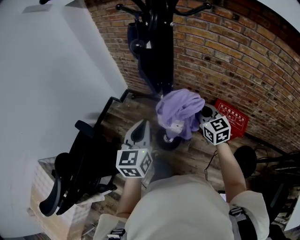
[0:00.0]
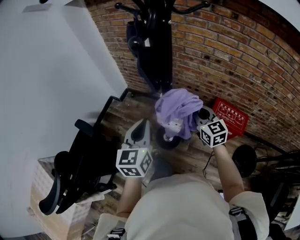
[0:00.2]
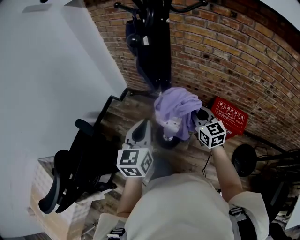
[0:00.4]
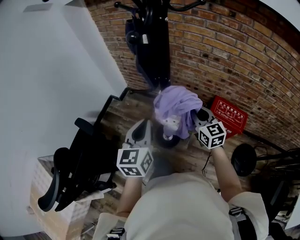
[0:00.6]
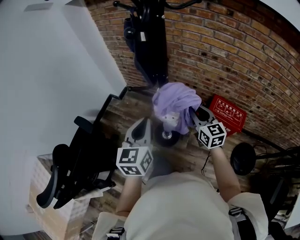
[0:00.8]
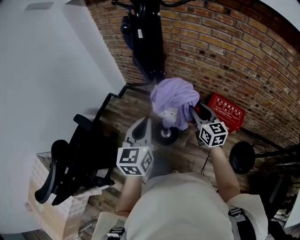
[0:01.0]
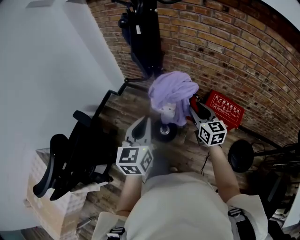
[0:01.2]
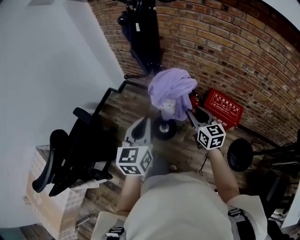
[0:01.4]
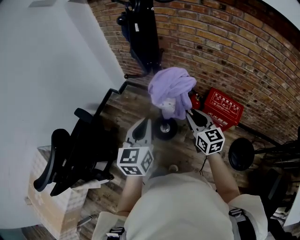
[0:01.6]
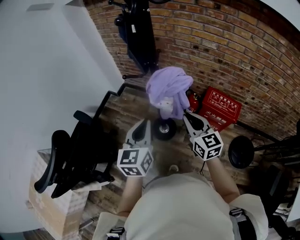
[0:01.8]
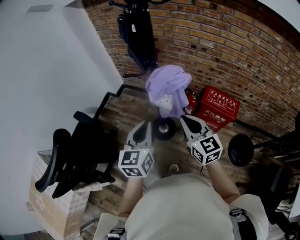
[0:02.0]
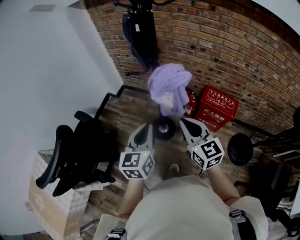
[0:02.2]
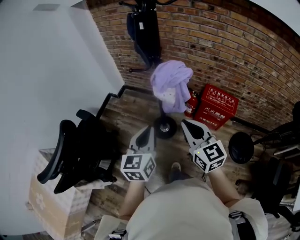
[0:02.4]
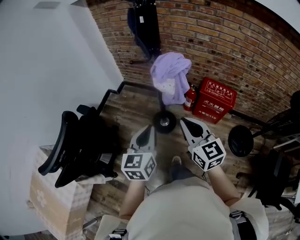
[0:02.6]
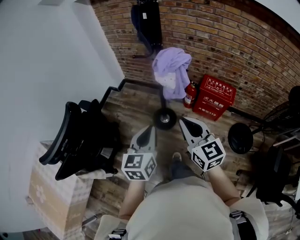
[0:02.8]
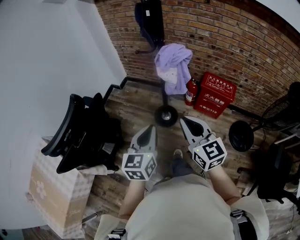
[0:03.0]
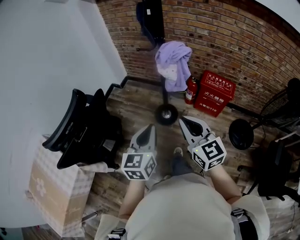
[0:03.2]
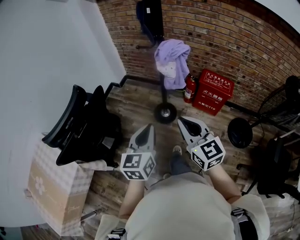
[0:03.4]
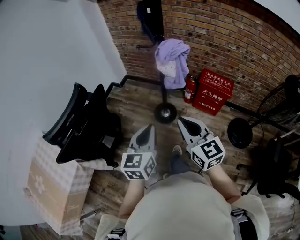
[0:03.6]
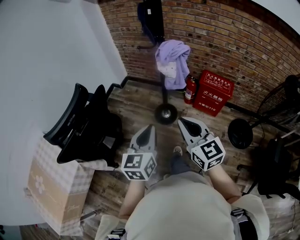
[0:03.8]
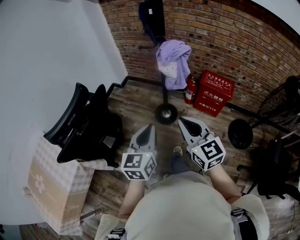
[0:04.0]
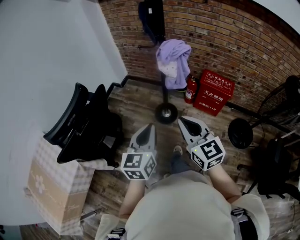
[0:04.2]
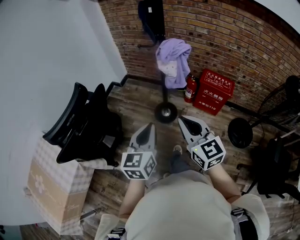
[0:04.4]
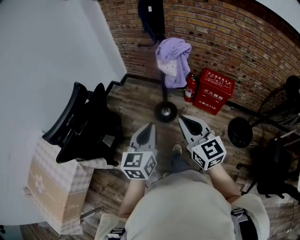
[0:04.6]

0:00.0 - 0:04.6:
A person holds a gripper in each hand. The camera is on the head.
0:00.0 - 0:01.6: The two grippers go about 10 cm backward.
0:01.6 - 0:03.0: The right gripper shifts about 30 cm backward and to the left, and closes its fingers. The left gripper shifts approximately 20 cm backward.
0:03.0 - 0:04.6: The two grippers go approximately 5 cm backward.

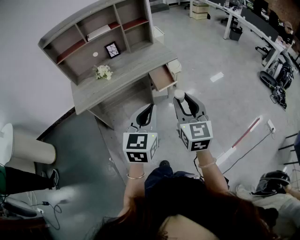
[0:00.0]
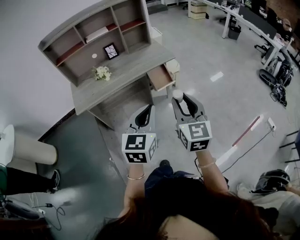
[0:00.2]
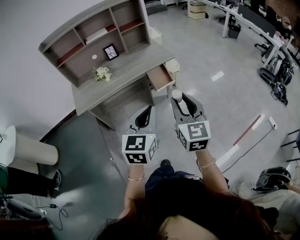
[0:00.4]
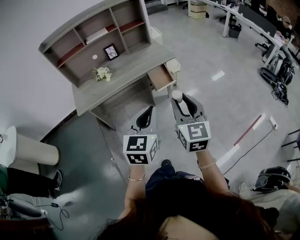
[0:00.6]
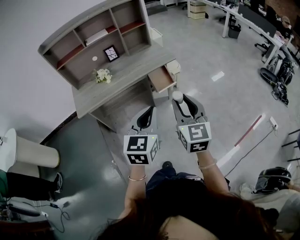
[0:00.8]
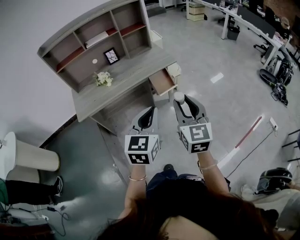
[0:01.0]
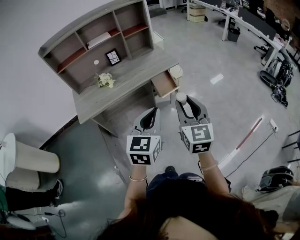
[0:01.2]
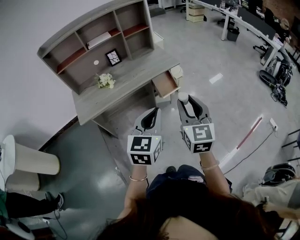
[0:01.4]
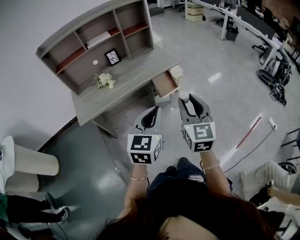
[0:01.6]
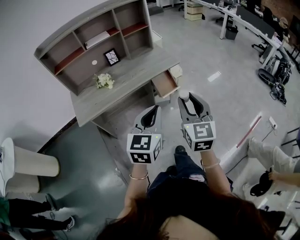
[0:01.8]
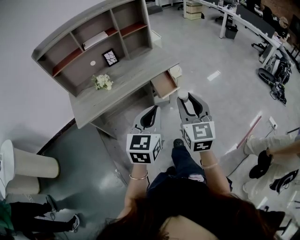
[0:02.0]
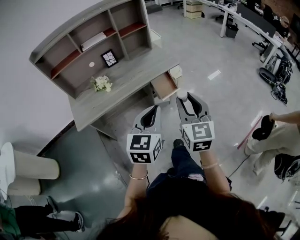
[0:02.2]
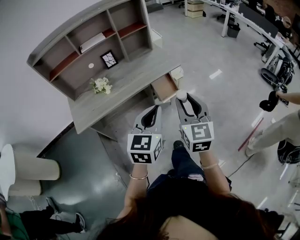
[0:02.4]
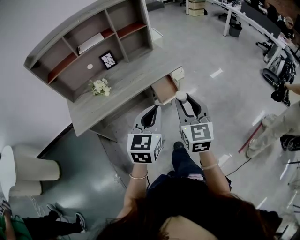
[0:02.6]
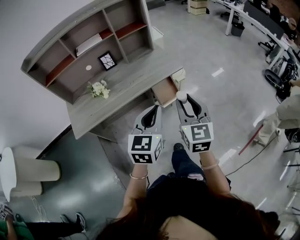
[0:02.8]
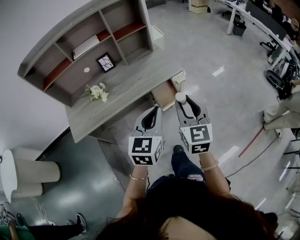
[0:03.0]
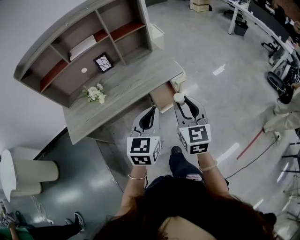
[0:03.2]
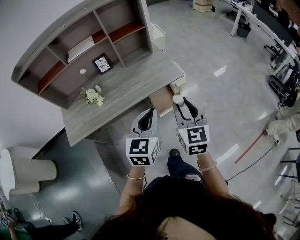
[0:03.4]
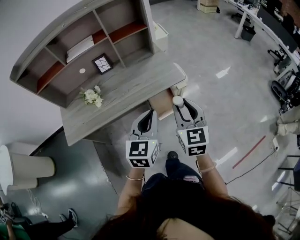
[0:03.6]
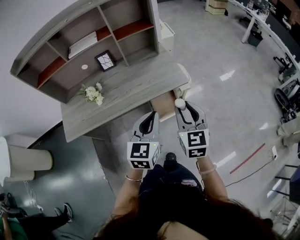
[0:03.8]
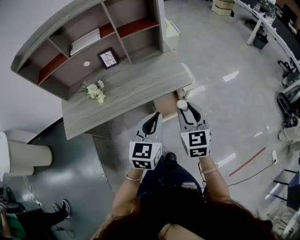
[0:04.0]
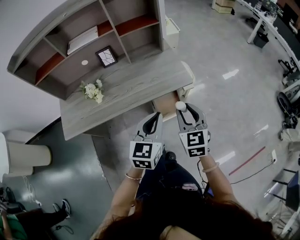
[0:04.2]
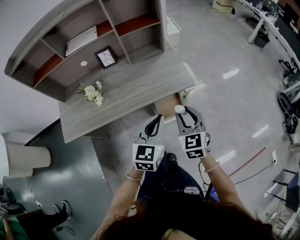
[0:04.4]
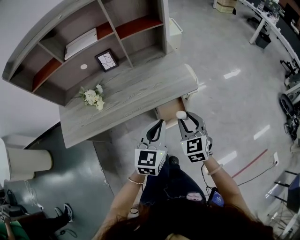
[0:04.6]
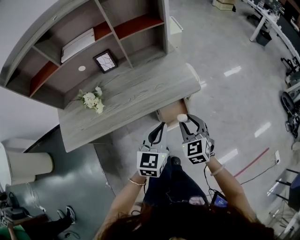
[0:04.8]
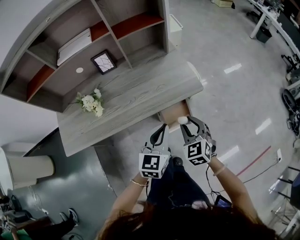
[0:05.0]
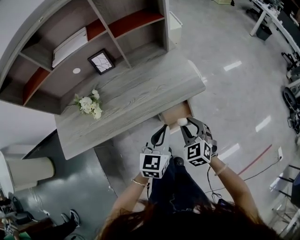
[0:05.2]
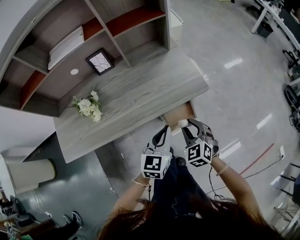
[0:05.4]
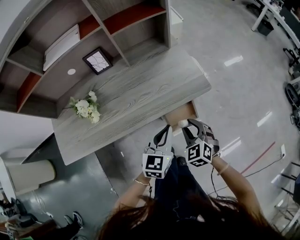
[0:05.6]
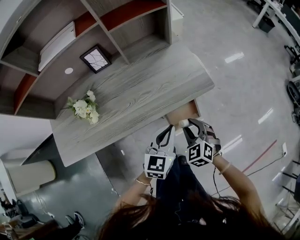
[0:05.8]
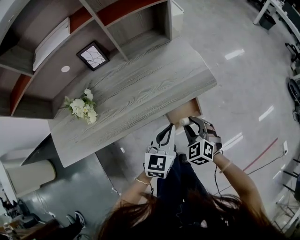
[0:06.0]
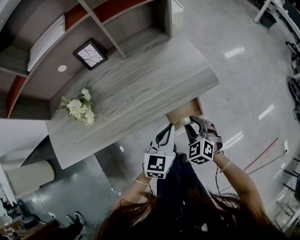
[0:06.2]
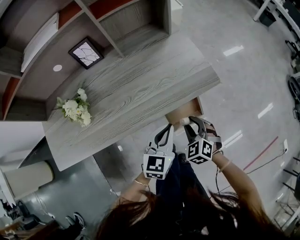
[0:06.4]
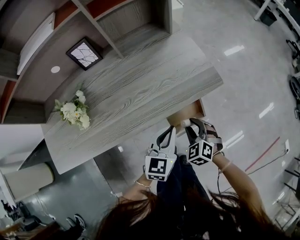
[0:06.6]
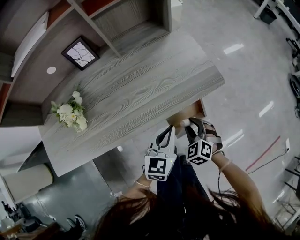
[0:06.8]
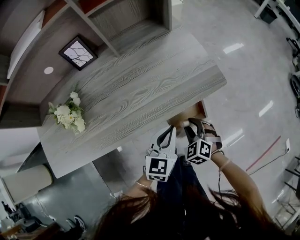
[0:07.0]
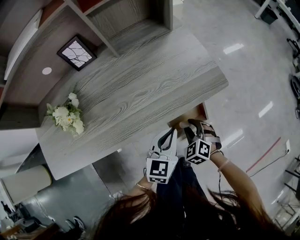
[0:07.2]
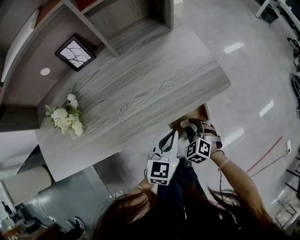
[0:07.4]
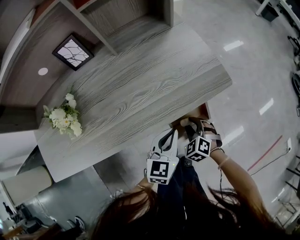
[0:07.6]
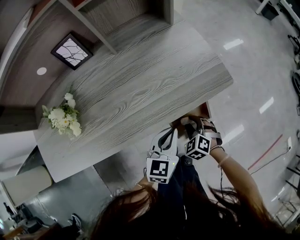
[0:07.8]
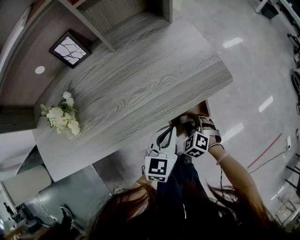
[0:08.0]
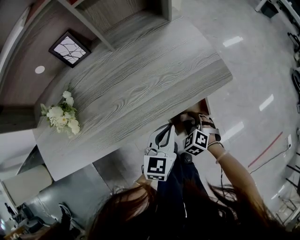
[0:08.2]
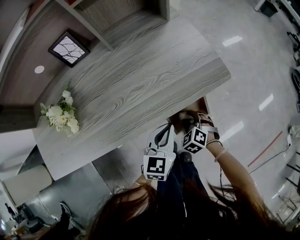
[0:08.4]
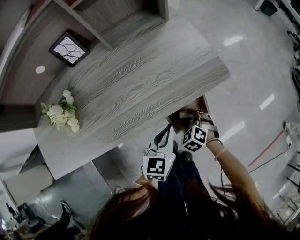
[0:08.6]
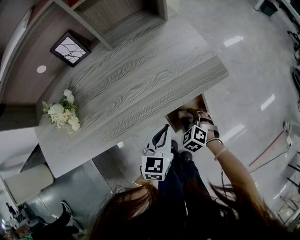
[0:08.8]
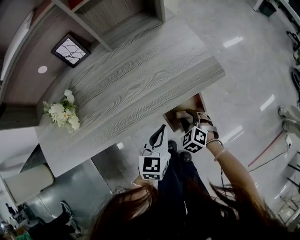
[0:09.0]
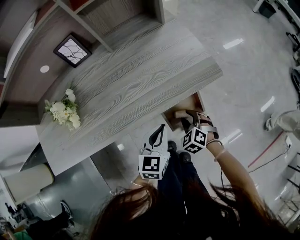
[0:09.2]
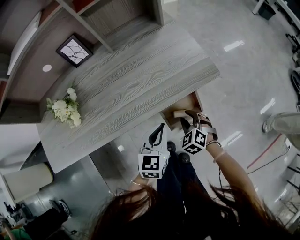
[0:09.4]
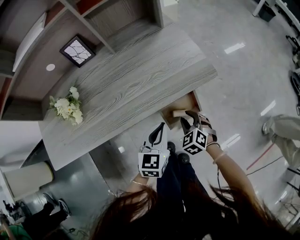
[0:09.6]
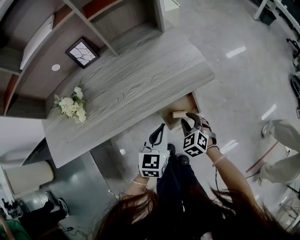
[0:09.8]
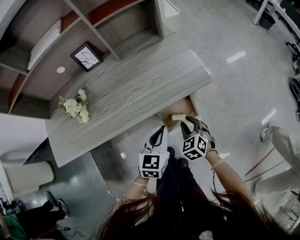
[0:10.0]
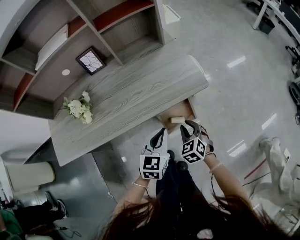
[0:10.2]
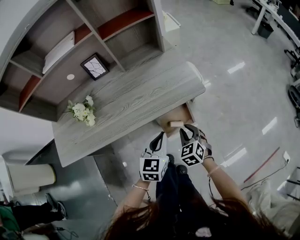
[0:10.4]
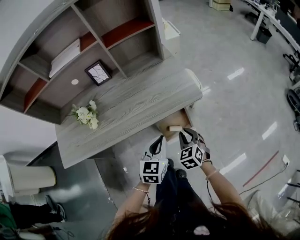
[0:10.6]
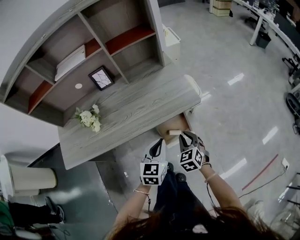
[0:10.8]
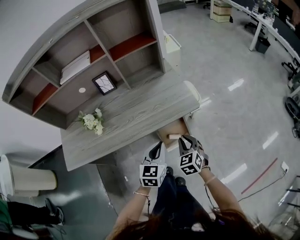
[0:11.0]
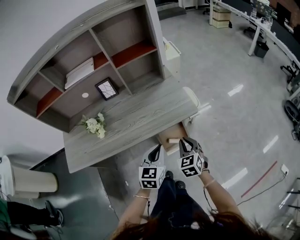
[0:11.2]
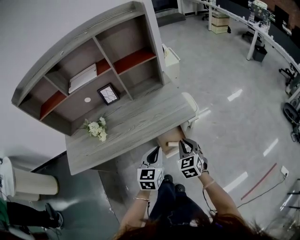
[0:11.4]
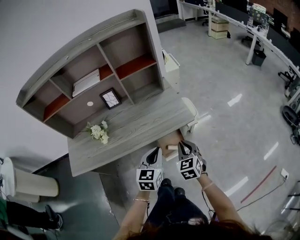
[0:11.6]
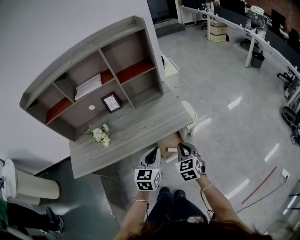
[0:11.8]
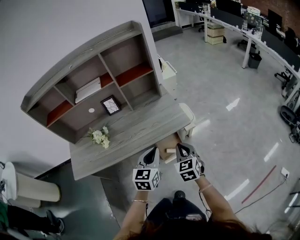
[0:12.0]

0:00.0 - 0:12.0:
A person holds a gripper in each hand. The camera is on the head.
0:00.0 - 0:01.6: The grippers make only small movements.
0:01.6 - 0:03.0: The two grippers go roughly 20 cm forward.
0:03.0 - 0:04.4: Both grippers travel together forward and downward, roughly 20 cm. The right gripper rotates some 20 degrees.
0:04.4 - 0:06.0: The right gripper moves downward, roughly 20 cm, and turns by approximately 30 degrees; the left gripper shifts roughly 20 cm downward and forward.
0:06.0 - 0:07.6: Both grippers move downward, approximately 15 cm.
0:07.6 - 0:09.0: The grippers move only a little.
0:09.0 - 0:10.4: The grippers both shift upward by approximately 15 cm. The right gripper rotates some 20 degrees, and closes up.
0:10.4 - 0:12.0: The grippers both shift upward by some 20 cm. The right gripper changes its angle by roughly 20 degrees.

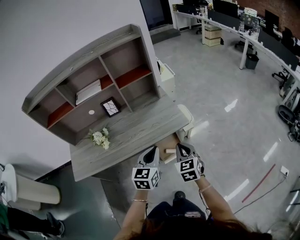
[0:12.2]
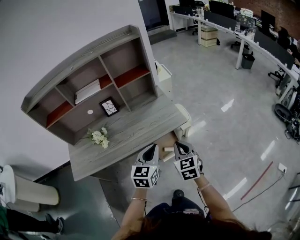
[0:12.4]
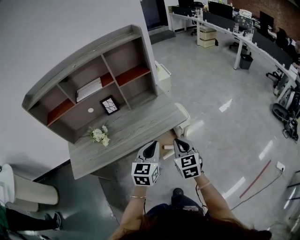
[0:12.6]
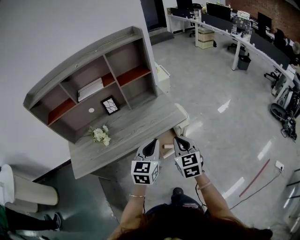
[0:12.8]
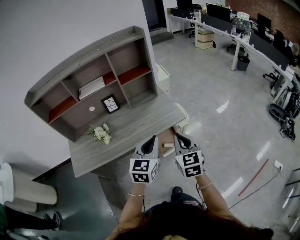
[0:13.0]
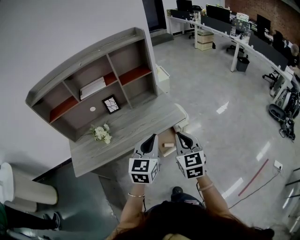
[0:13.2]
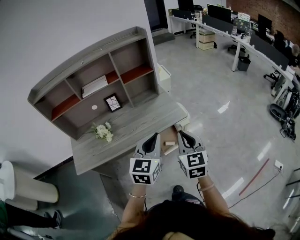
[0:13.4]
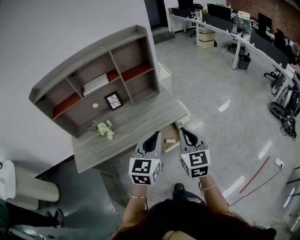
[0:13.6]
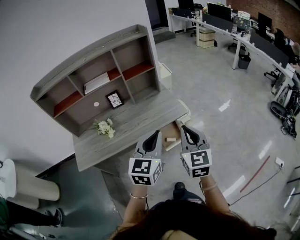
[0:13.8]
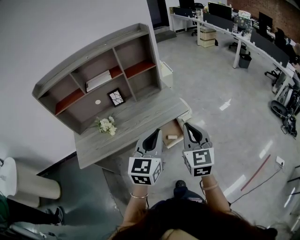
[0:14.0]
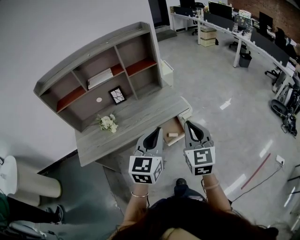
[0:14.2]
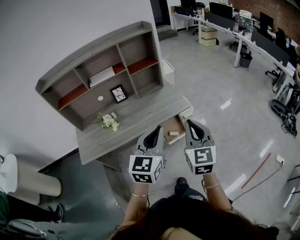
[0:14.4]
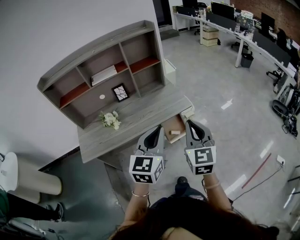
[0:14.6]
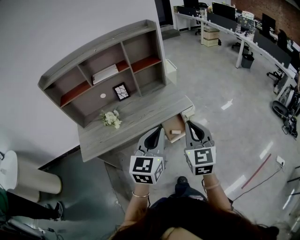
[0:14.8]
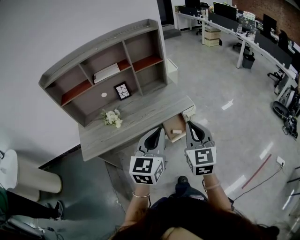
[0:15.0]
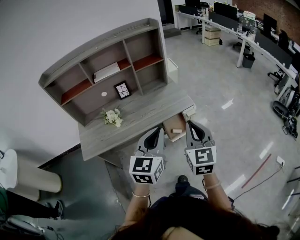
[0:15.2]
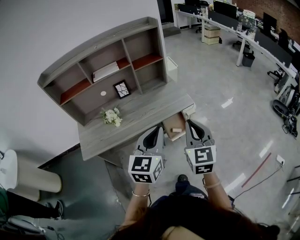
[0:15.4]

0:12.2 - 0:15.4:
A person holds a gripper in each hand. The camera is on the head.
0:12.2 - 0:13.8: Both grippers travel together upward and backward, some 20 cm.
0:13.8 - 0:15.4: The left gripper shifts some 5 cm backward. Meanwhile the right gripper ends up about 5 cm from where it was.

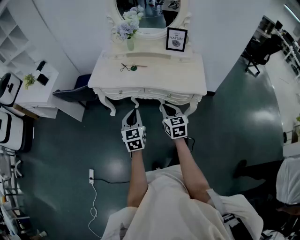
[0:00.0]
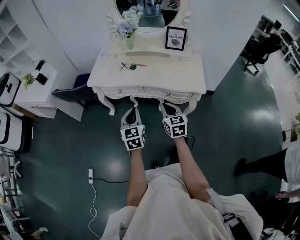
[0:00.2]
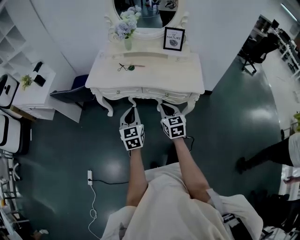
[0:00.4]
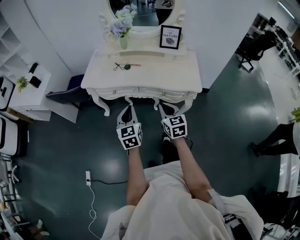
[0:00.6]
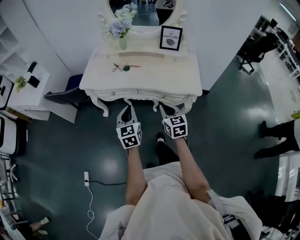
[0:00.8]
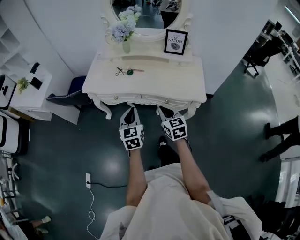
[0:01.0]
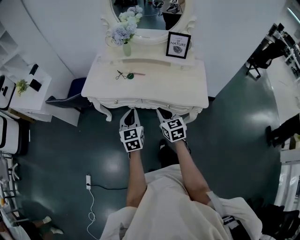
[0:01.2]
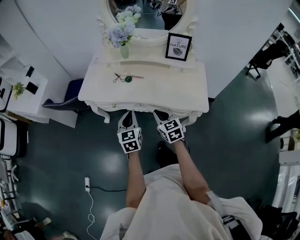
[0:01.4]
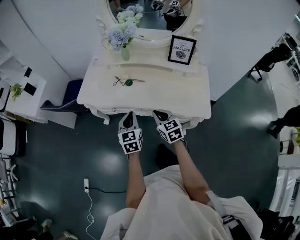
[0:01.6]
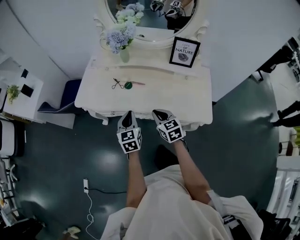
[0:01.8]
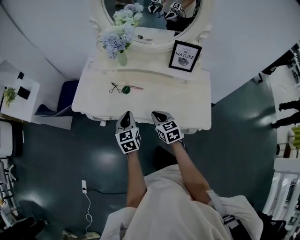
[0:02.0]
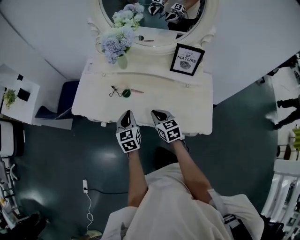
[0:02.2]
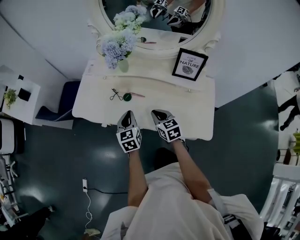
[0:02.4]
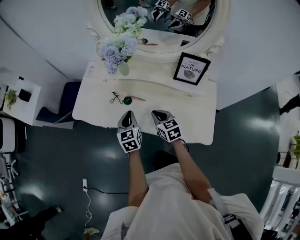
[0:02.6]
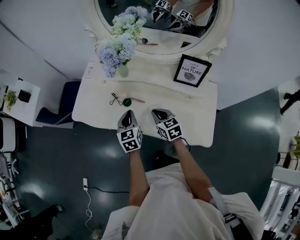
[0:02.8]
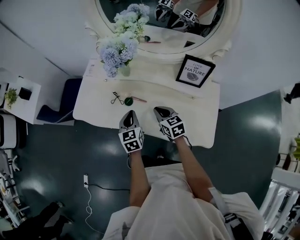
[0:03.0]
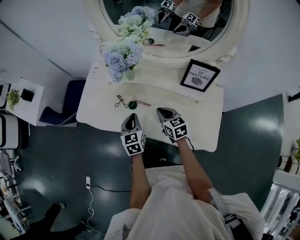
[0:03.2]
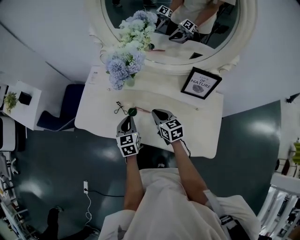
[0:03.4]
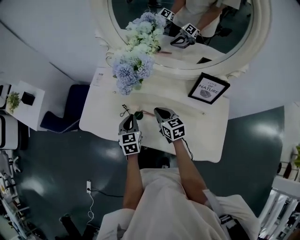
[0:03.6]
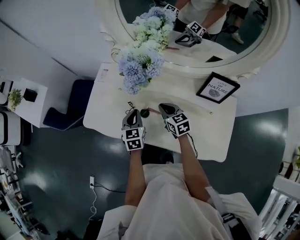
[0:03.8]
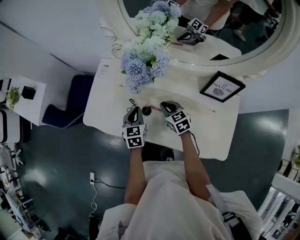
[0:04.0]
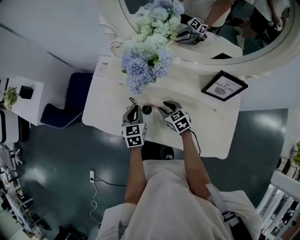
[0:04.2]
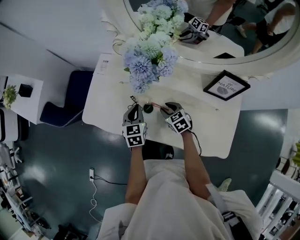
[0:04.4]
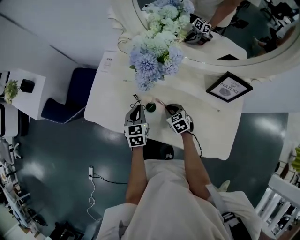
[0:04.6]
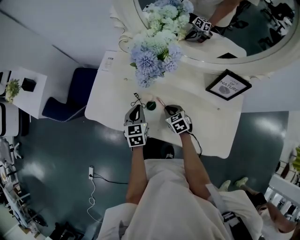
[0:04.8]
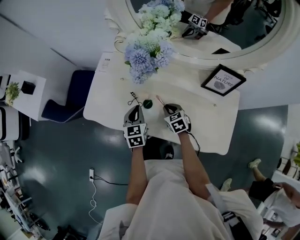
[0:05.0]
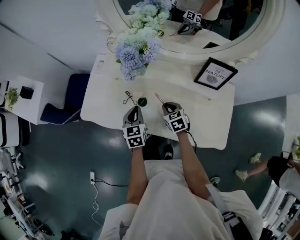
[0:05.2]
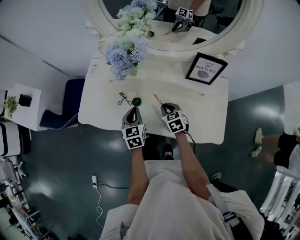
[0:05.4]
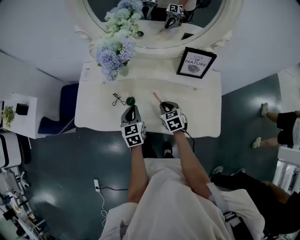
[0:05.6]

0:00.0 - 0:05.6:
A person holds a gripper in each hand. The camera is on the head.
0:00.0 - 0:01.4: Both grippers move forward, some 15 cm.
0:01.4 - 0:02.8: The two grippers go roughly 25 cm forward.
0:02.8 - 0:04.2: The two grippers go roughly 15 cm forward and downward. The right gripper opens.
0:04.2 - 0:05.6: Both grippers move backward and to the right, approximately 10 cm. The right gripper changes its angle by approximately 20 degrees, and closes.
